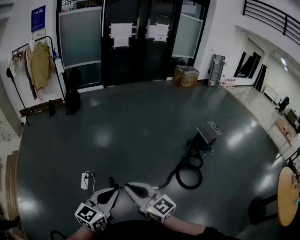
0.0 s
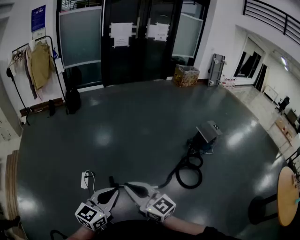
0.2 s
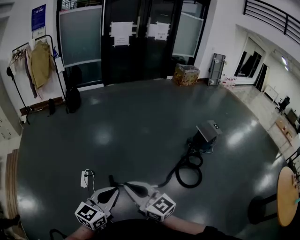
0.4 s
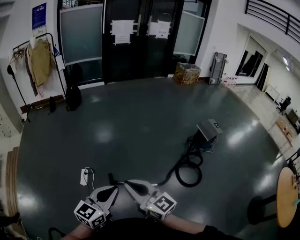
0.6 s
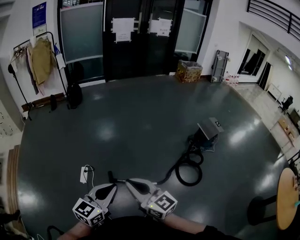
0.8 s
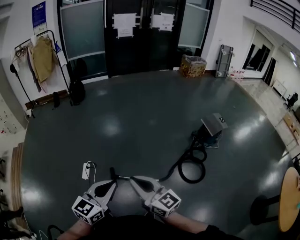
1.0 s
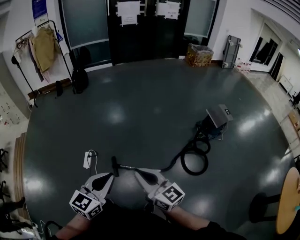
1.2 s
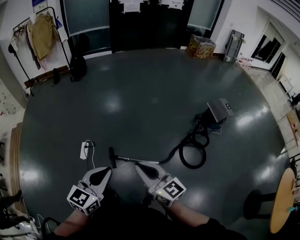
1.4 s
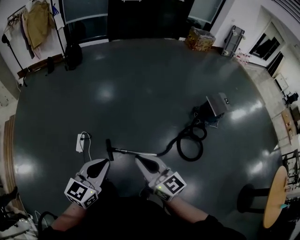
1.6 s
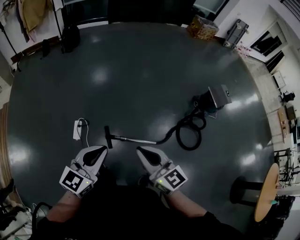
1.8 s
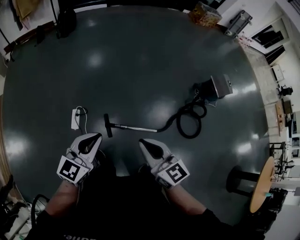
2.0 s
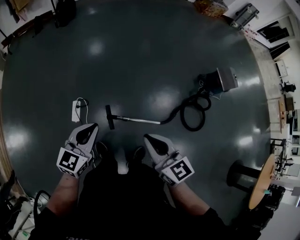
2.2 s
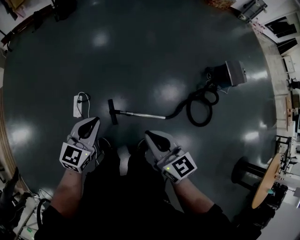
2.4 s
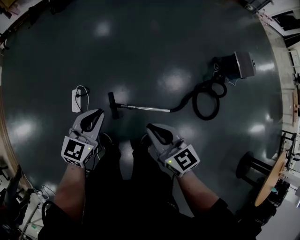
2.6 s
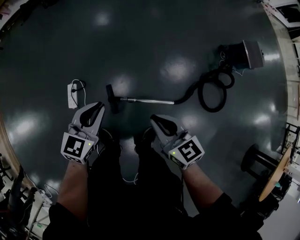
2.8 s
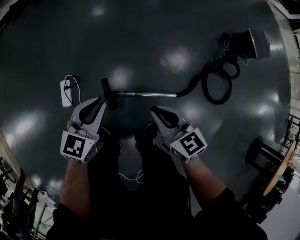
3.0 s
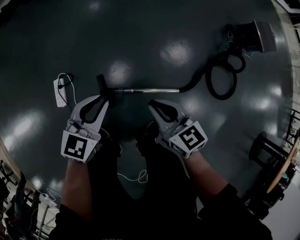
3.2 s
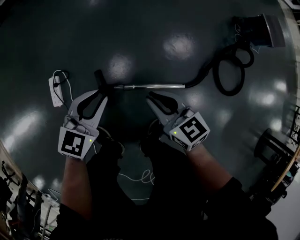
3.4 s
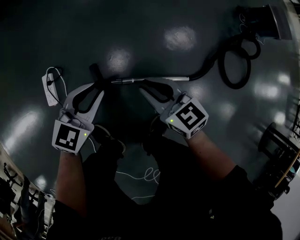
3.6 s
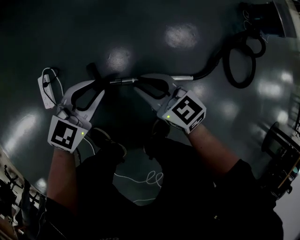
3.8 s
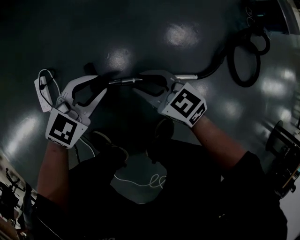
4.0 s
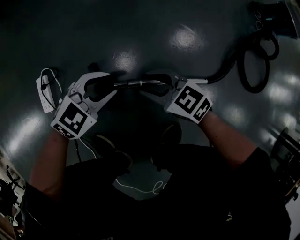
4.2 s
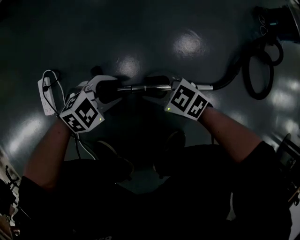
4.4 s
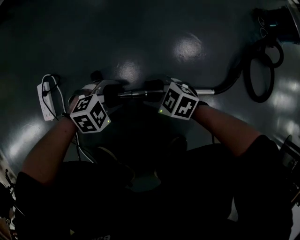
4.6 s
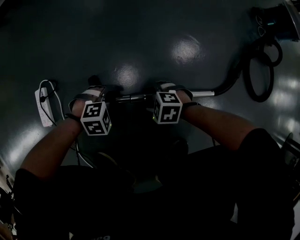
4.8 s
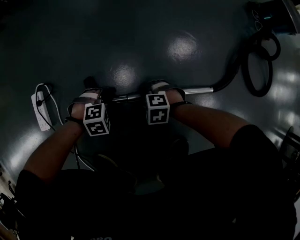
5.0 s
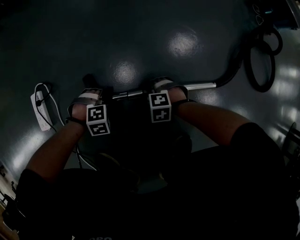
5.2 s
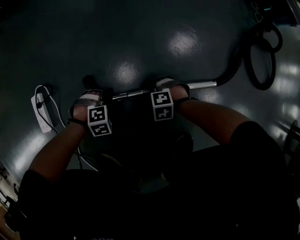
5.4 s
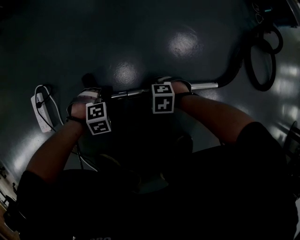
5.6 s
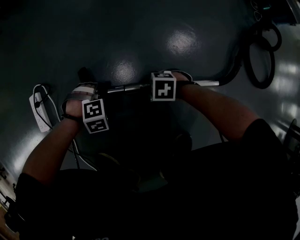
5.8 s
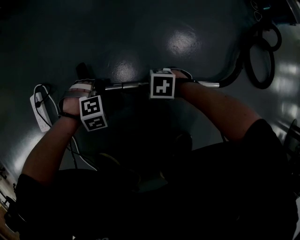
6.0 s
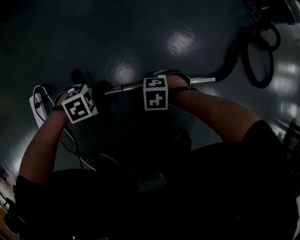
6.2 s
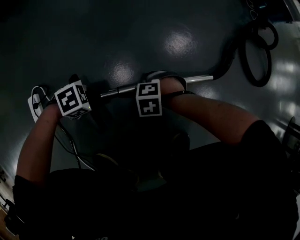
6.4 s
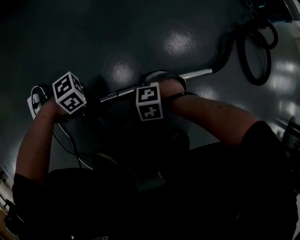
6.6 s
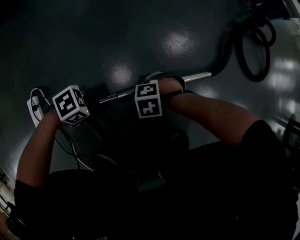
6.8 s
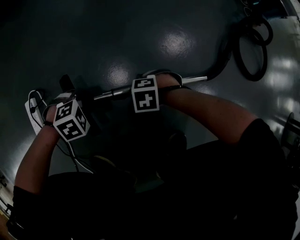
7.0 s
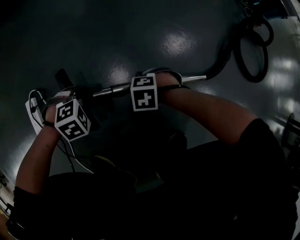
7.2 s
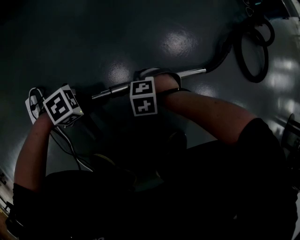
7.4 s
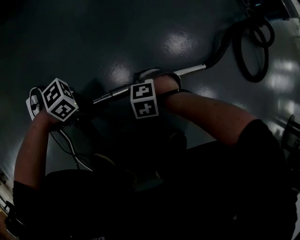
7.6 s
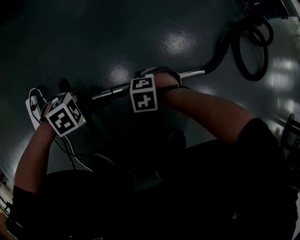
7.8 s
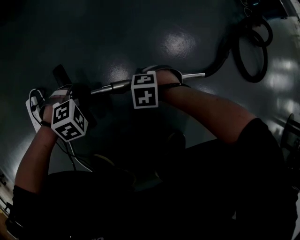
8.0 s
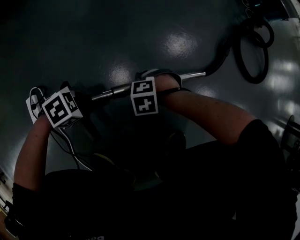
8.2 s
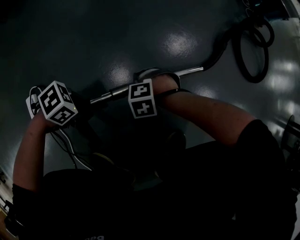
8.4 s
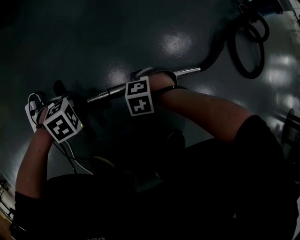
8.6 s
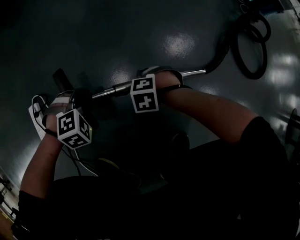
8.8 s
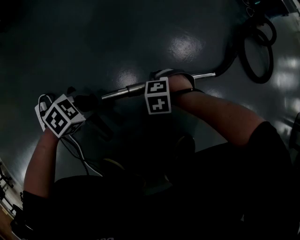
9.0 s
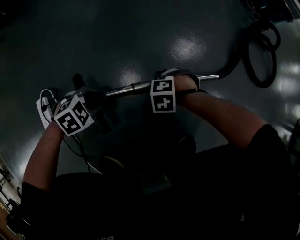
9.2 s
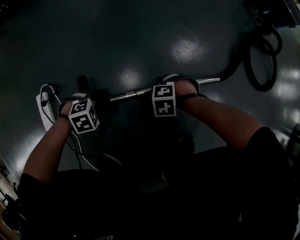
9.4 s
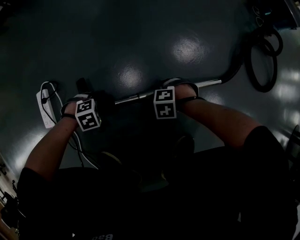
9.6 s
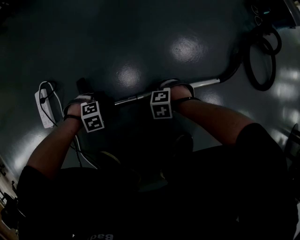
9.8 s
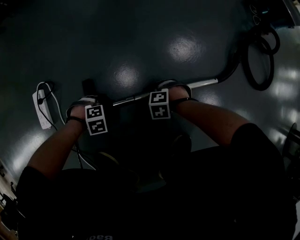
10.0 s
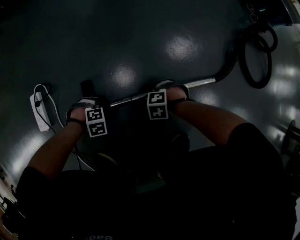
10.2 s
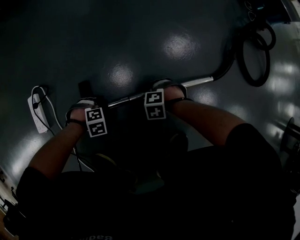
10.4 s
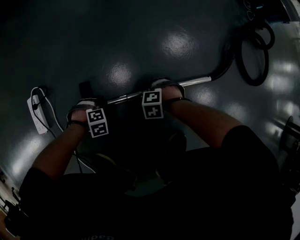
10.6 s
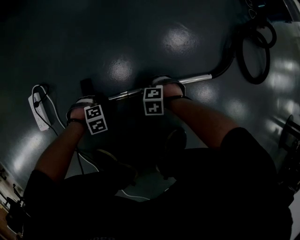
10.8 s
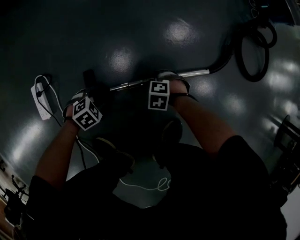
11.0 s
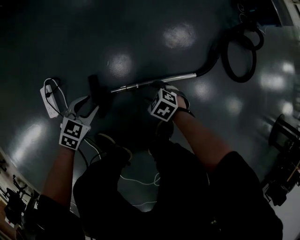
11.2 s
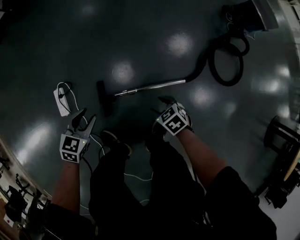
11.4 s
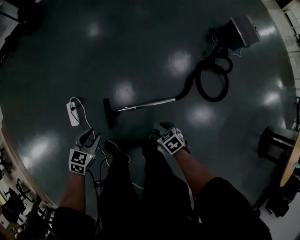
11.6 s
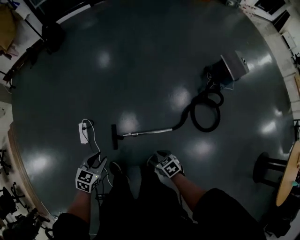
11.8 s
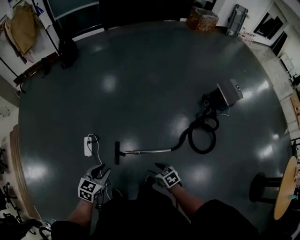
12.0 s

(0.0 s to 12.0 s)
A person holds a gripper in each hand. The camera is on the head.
0.0 s - 1.6 s: The grippers both shift forward and downward by about 10 cm.
1.6 s - 3.0 s: Both grippers travel together downward and forward, about 40 cm. The right gripper changes its angle by approximately 20 degrees.
3.0 s - 4.4 s: Both grippers move downward, roughly 40 cm. The left gripper rotates about 50 degrees, and opens its fingers, while the right gripper swivels approximately 40 degrees, and opens its fingers.
4.4 s - 6.0 s: The two grippers go approximately 15 cm downward. The left gripper angles its fingers downward, by roughly 30 degrees; the right gripper changes its angle by approximately 30 degrees.
6.0 s - 7.6 s: The right gripper changes its angle by roughly 30 degrees. Meanwhile the left gripper travels upward by approximately 10 cm, and points its fingers approximately 40 degrees further upward.
7.6 s - 9.0 s: The left gripper changes place by roughly 5 cm, and rotates approximately 30 degrees.
9.0 s - 10.4 s: The left gripper is displaced downward by approximately 15 cm, and turns by roughly 40 degrees. Meanwhile the right gripper is displaced downward by approximately 10 cm.
10.4 s - 12.0 s: Both grippers move upward, approximately 80 cm. The right gripper rolls clockwise, seen from behind, by about 60 degrees, and opens up, while the left gripper points its fingers roughly 50 degrees further upward.

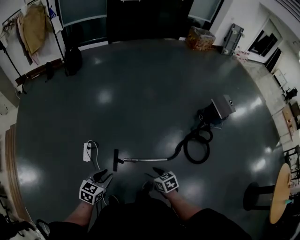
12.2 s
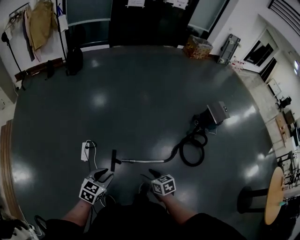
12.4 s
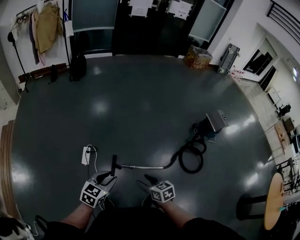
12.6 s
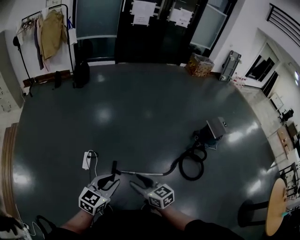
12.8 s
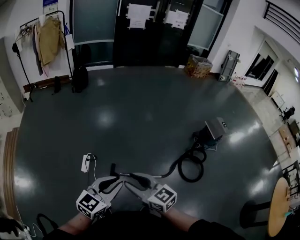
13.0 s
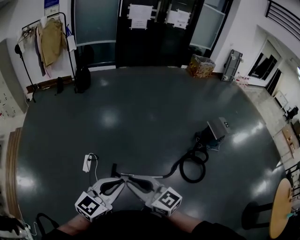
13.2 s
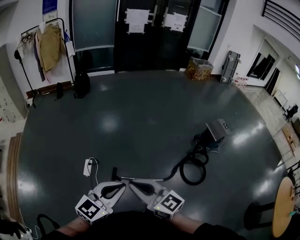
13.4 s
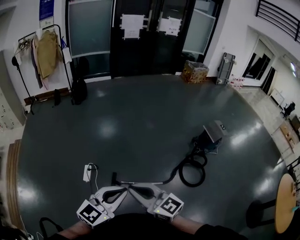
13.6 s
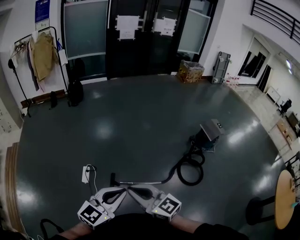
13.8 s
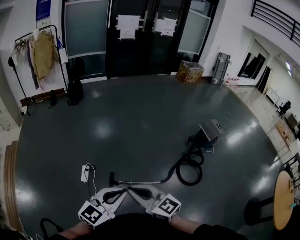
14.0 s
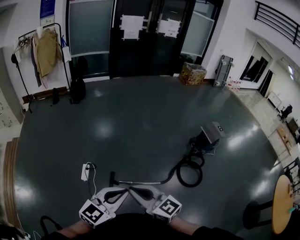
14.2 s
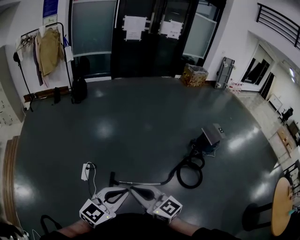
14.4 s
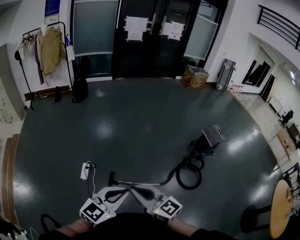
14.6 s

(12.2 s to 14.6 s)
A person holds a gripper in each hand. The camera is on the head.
12.2 s - 13.4 s: The right gripper shifts some 30 cm upward, angles its fingers upward, by roughly 50 degrees, and closes its fingers. The left gripper moves upward, to the right and backward, some 30 cm, changes its angle by roughly 30 degrees, and closes its fingers.
13.4 s - 14.6 s: The grippers move only a little.

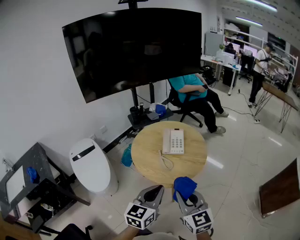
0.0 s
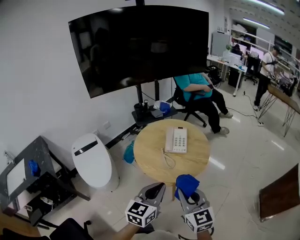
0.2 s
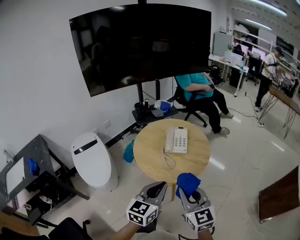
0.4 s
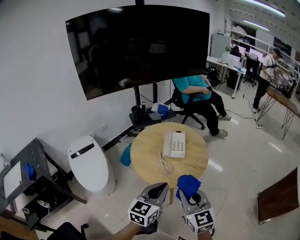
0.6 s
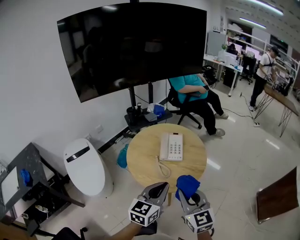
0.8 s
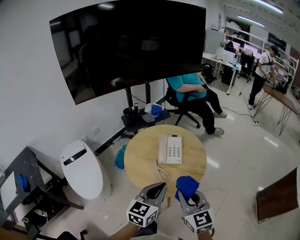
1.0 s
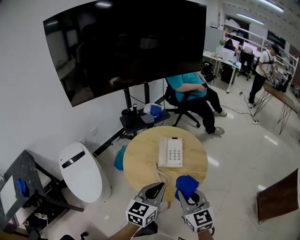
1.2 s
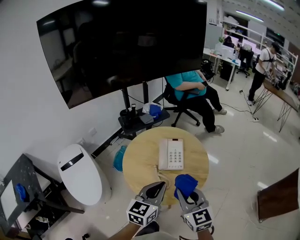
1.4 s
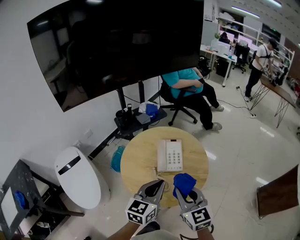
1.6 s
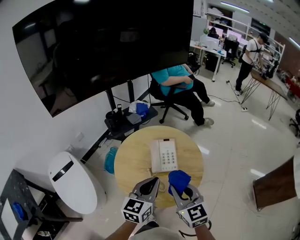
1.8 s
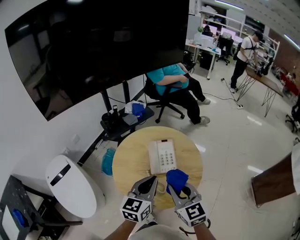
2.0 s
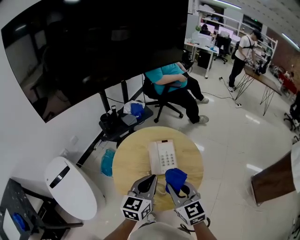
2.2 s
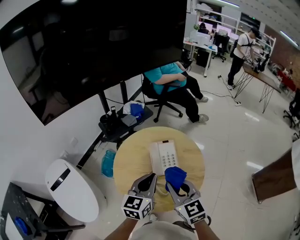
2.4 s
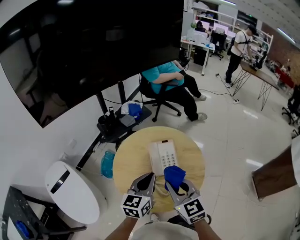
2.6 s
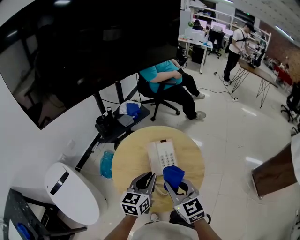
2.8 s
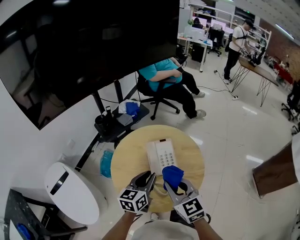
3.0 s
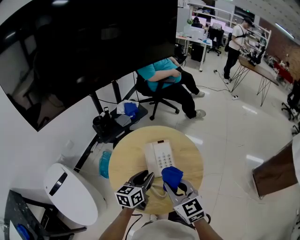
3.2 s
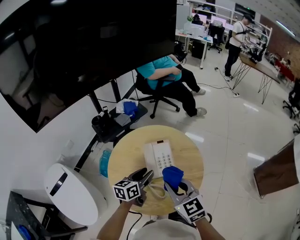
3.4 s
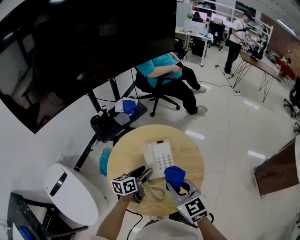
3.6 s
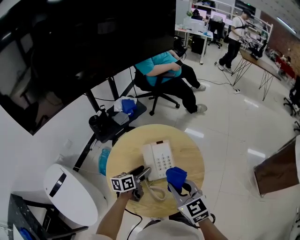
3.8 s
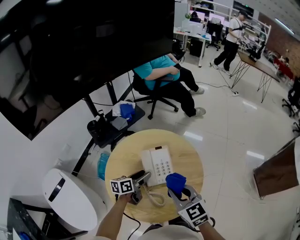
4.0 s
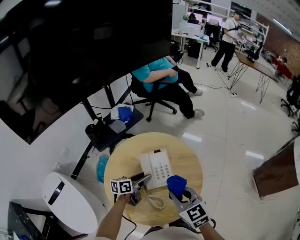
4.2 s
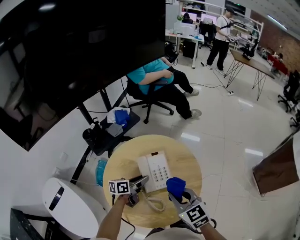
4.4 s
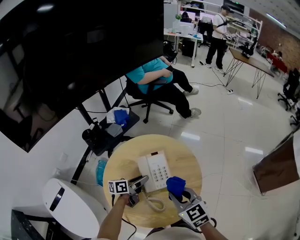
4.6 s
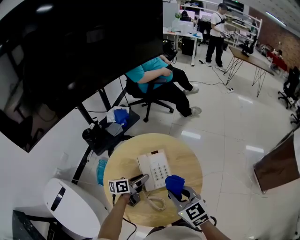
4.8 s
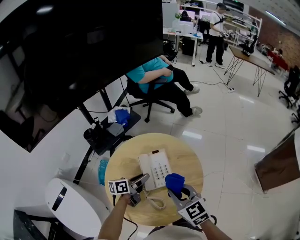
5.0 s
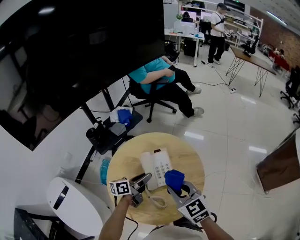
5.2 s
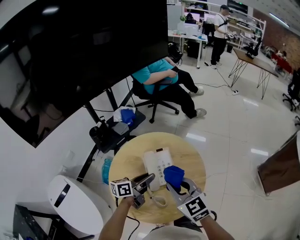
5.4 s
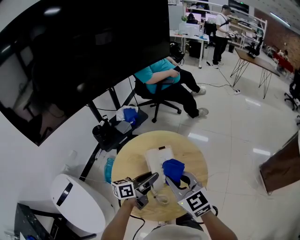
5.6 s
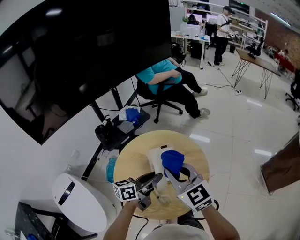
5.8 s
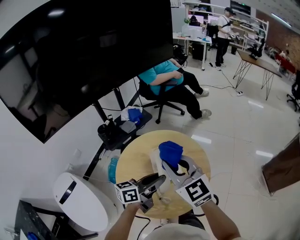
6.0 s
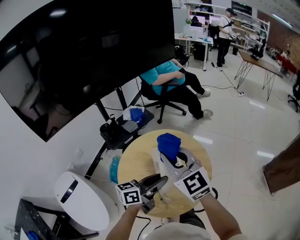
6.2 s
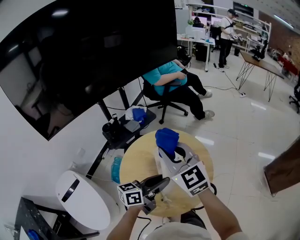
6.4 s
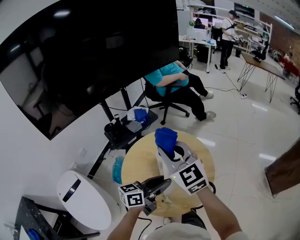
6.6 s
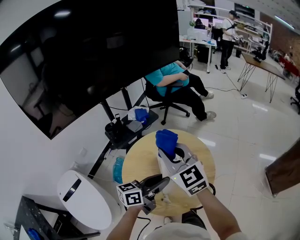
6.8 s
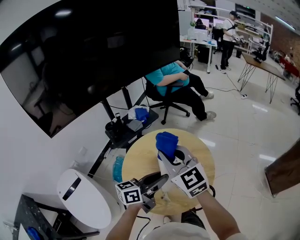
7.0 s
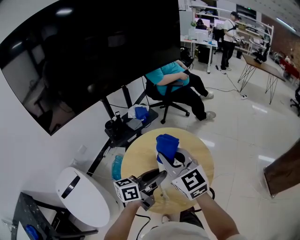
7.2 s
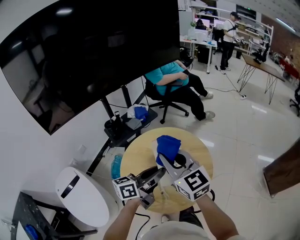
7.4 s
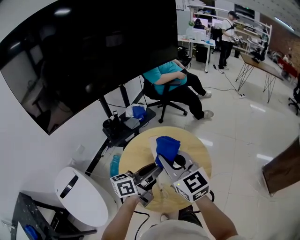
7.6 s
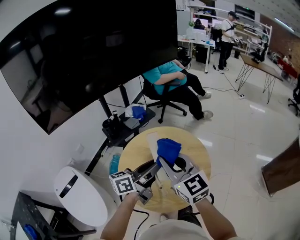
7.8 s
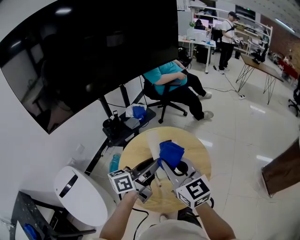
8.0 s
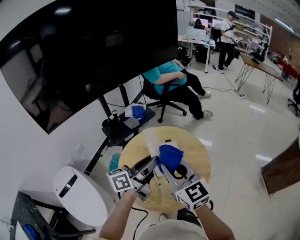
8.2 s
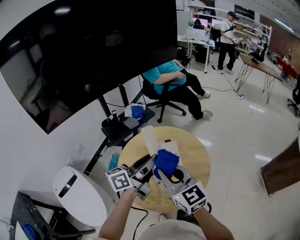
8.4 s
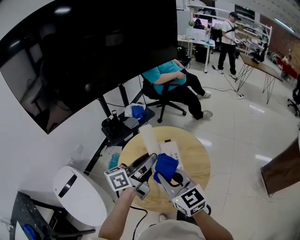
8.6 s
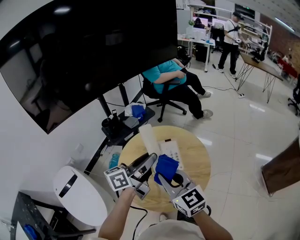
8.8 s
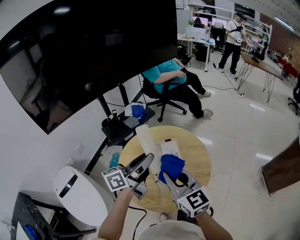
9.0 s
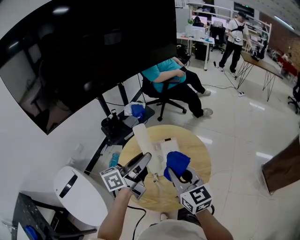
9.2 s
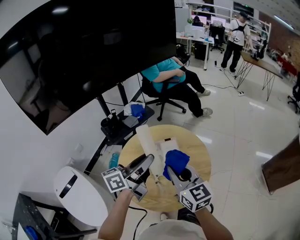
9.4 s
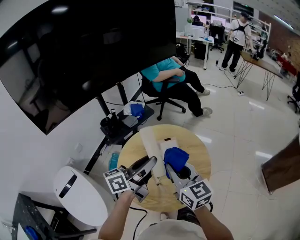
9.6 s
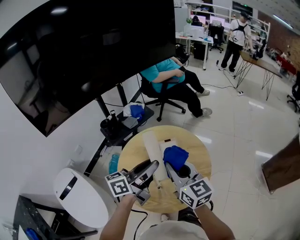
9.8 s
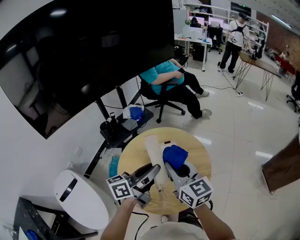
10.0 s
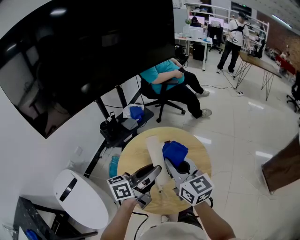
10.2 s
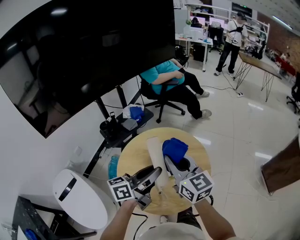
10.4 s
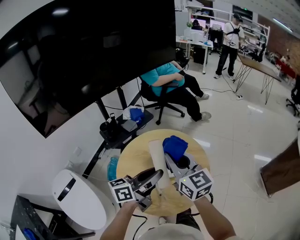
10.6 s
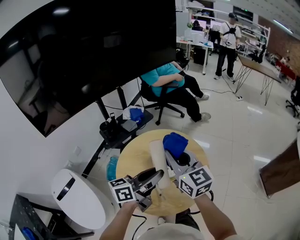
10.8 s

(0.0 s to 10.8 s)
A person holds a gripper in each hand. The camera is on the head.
0.0 s - 1.6 s: The grippers both shift forward by about 20 cm.
1.6 s - 3.0 s: The right gripper moves forward, roughly 5 cm. Meanwhile the left gripper moves forward and downward, roughly 10 cm.
3.0 s - 4.6 s: The right gripper goes about 10 cm downward and forward. The left gripper travels downward and forward by some 20 cm, changes its angle by roughly 40 degrees, and opens, then closes again.
4.6 s - 6.2 s: The right gripper travels upward and to the left by approximately 20 cm, and turns by about 30 degrees. The left gripper is displaced upward and backward by approximately 20 cm, and changes its angle by about 20 degrees.
6.2 s - 7.8 s: The left gripper goes some 5 cm upward.
7.8 s - 9.2 s: The right gripper moves downward, about 5 cm. Meanwhile the left gripper shifts by roughly 5 cm.
9.2 s - 10.8 s: The right gripper shifts some 10 cm forward and upward; the left gripper shifts some 5 cm to the right.
